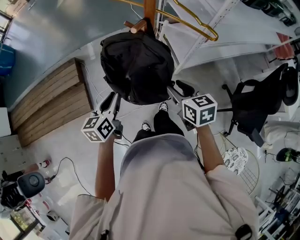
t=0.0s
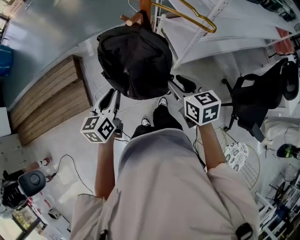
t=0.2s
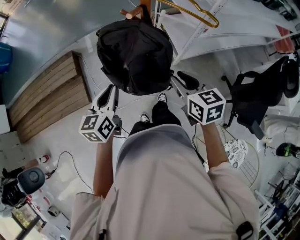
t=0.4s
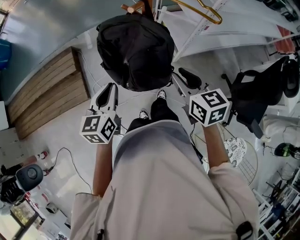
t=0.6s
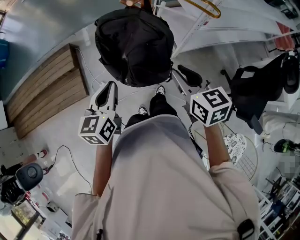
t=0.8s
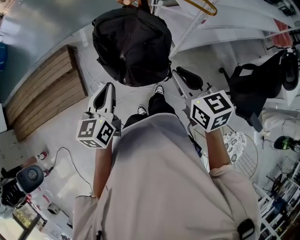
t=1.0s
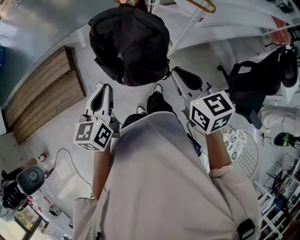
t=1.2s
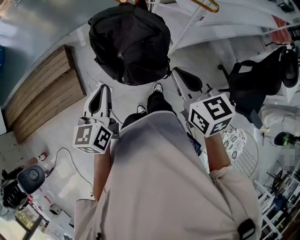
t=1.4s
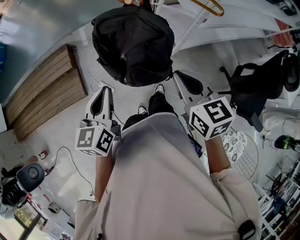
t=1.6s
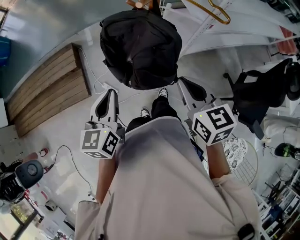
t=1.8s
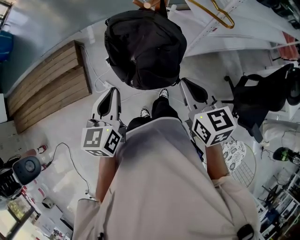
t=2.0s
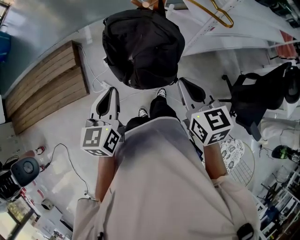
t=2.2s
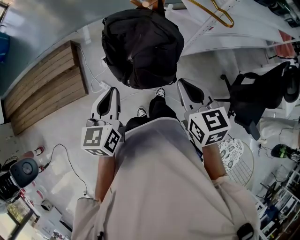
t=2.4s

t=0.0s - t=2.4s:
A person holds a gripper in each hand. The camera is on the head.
t=0.0s - t=1.2s: The two grippers go roughly 10 cm upward and backward. The right gripper closes up.
t=1.2s - t=2.4s: There are only small adjustments of the grippers.

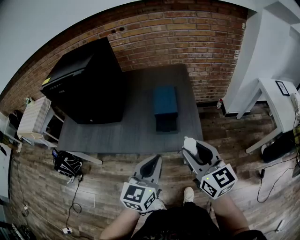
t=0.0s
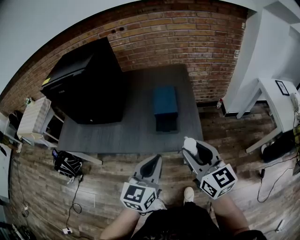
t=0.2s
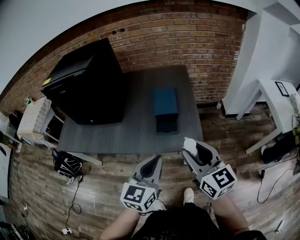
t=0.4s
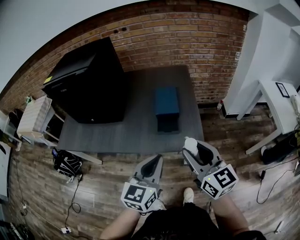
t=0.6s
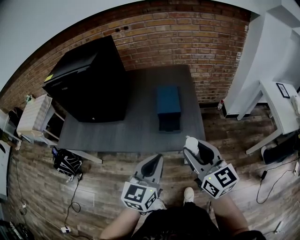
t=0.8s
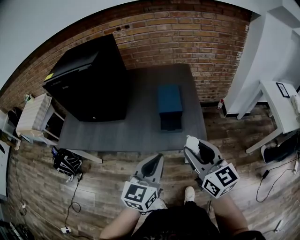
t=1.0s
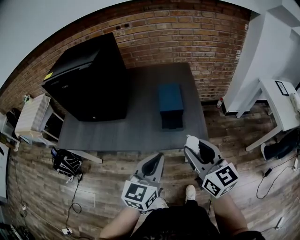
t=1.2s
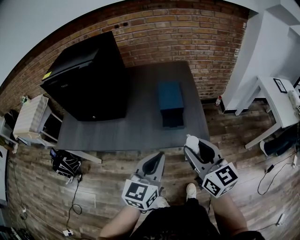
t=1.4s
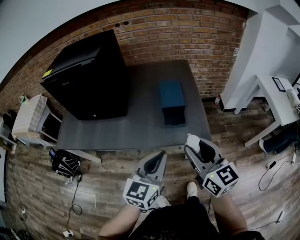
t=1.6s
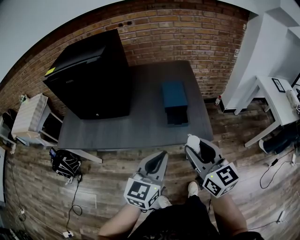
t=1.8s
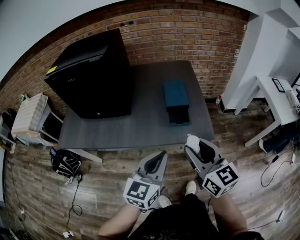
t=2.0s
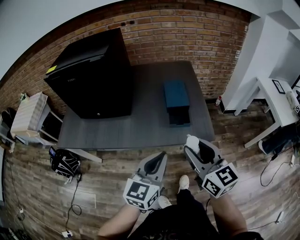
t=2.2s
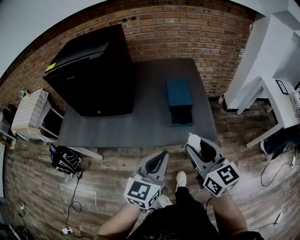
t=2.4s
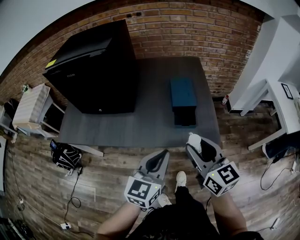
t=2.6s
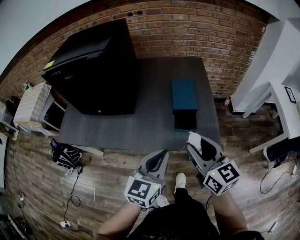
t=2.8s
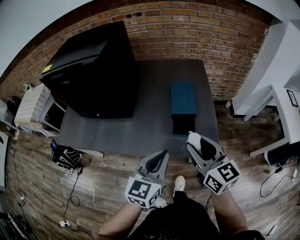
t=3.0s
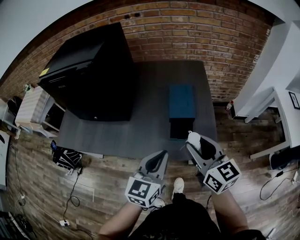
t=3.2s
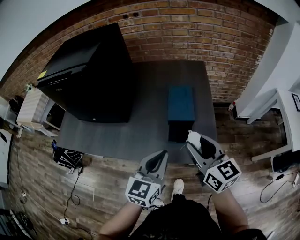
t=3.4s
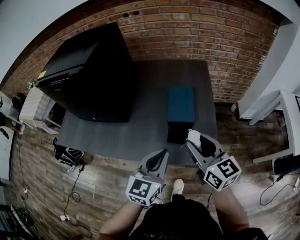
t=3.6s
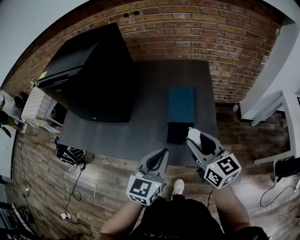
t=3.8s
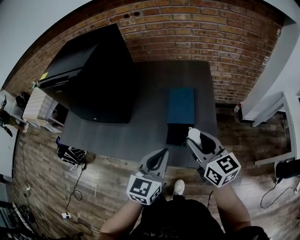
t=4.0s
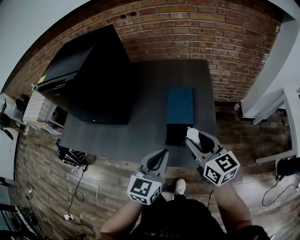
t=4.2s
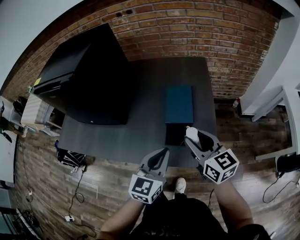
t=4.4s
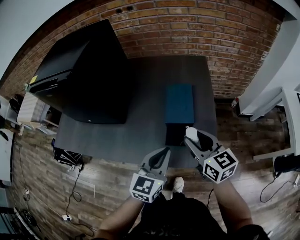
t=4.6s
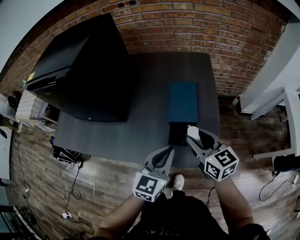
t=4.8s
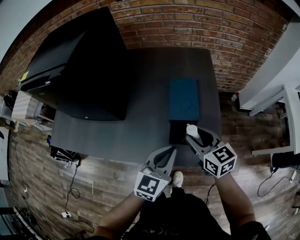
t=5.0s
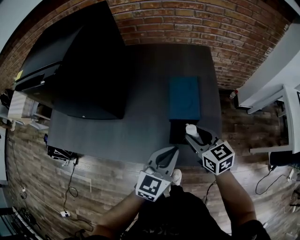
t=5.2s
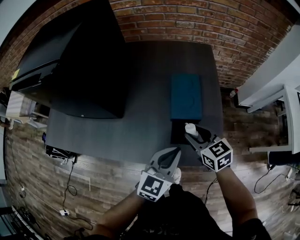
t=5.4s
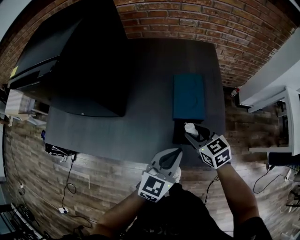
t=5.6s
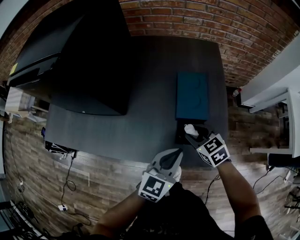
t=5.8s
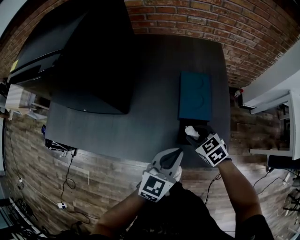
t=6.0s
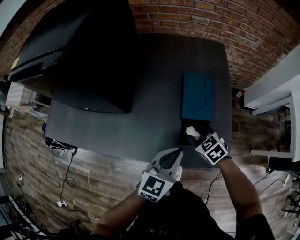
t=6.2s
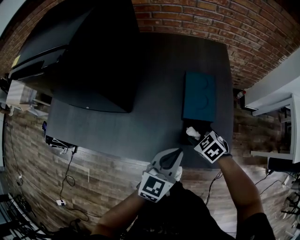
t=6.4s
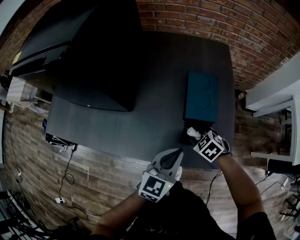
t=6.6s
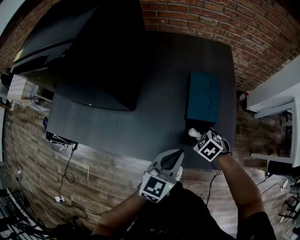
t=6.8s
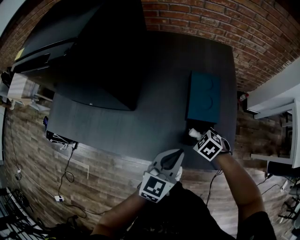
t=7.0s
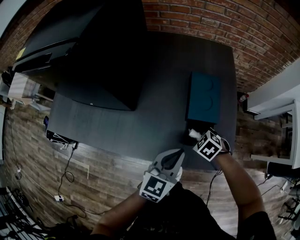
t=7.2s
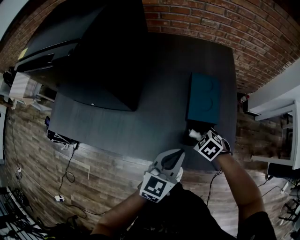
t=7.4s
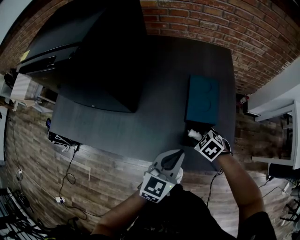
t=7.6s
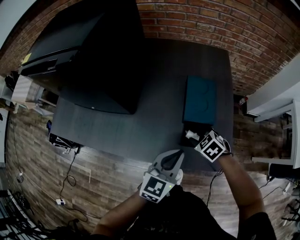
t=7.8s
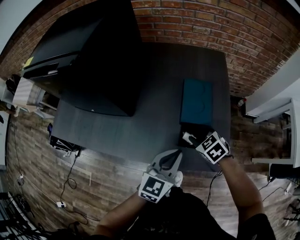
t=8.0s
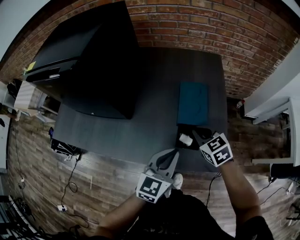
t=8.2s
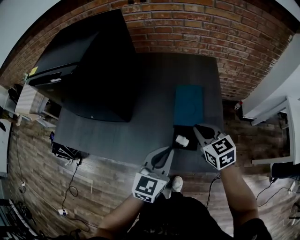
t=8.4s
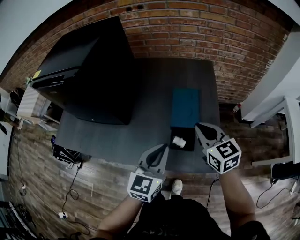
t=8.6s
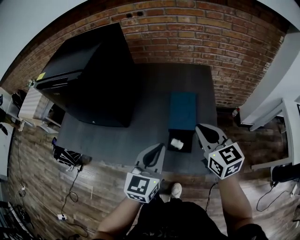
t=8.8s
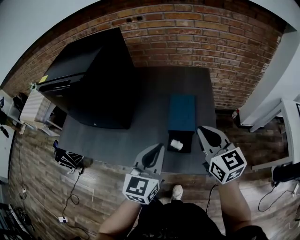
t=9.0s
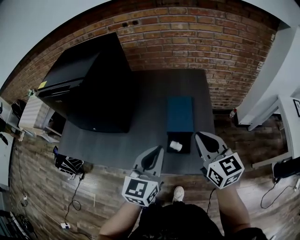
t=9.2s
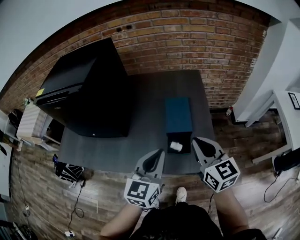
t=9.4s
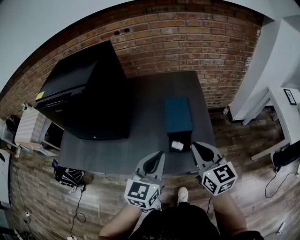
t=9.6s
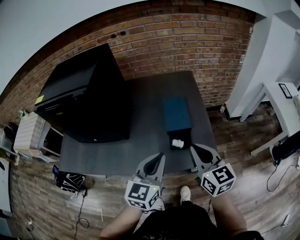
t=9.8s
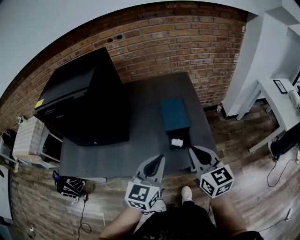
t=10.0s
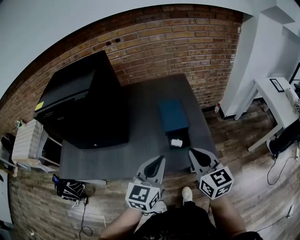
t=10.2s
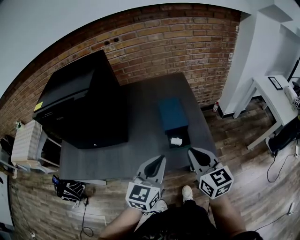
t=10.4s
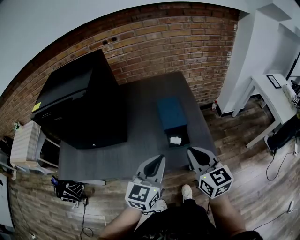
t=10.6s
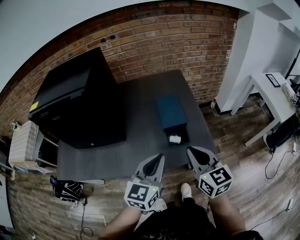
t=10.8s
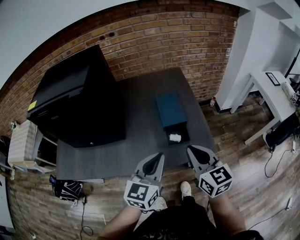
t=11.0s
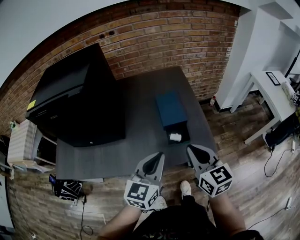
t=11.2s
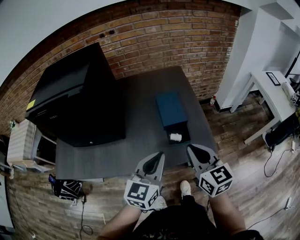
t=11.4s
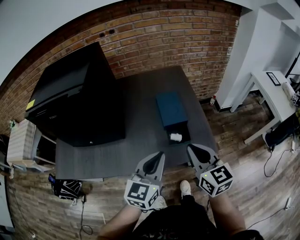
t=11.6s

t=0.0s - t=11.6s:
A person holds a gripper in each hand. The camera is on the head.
t=0.0s - t=1.4s: The right gripper goes roughly 5 cm to the left.
t=1.4s - t=2.8s: The right gripper heads forward and to the left, covering roughly 10 cm, while the left gripper goes about 5 cm forward.
t=2.8s - t=4.4s: Both grippers travel together forward and to the right, about 15 cm.
t=4.4s - t=5.8s: The right gripper shifts some 15 cm downward, and tips its fingers downward by approximately 30 degrees; the left gripper goes some 5 cm downward.
t=5.8s - t=7.2s: The right gripper heads downward, covering about 10 cm, and rotates some 30 degrees.
t=7.2s - t=8.8s: The left gripper heads upward, covering roughly 10 cm. Meanwhile the right gripper moves upward, approximately 30 cm, angles its fingers upward, by about 50 degrees, and closes its fingers.
t=8.8s - t=10.2s: The left gripper moves backward, about 10 cm. Meanwhile the right gripper moves backward, some 15 cm.
t=10.2s - t=11.6s: The grippers move only a little.

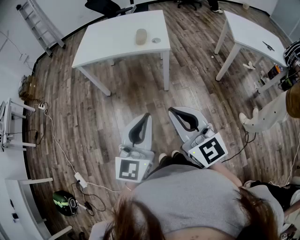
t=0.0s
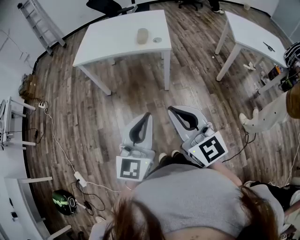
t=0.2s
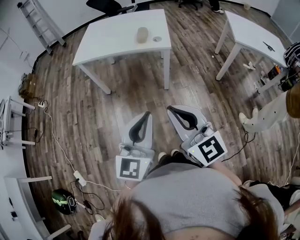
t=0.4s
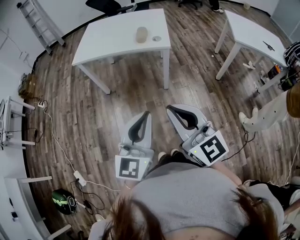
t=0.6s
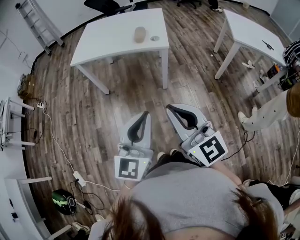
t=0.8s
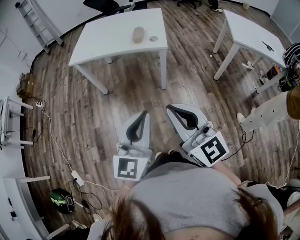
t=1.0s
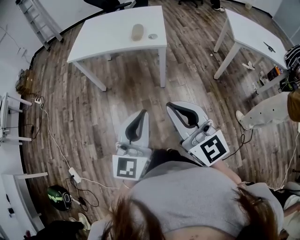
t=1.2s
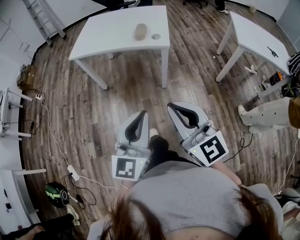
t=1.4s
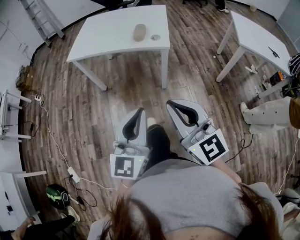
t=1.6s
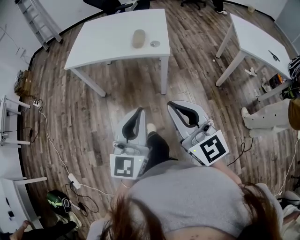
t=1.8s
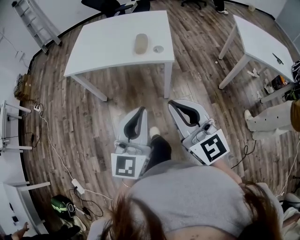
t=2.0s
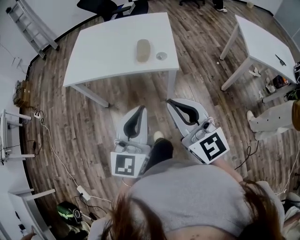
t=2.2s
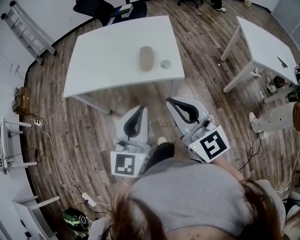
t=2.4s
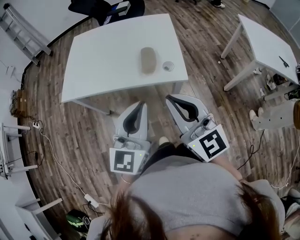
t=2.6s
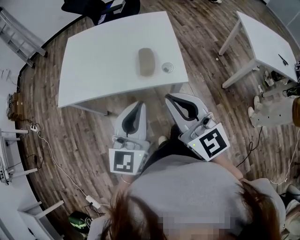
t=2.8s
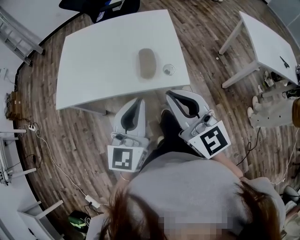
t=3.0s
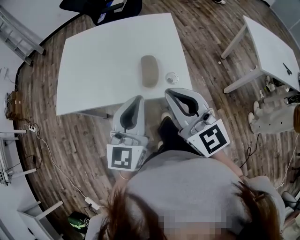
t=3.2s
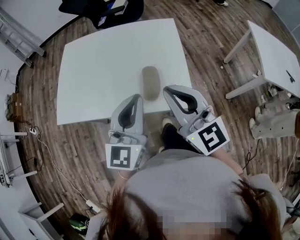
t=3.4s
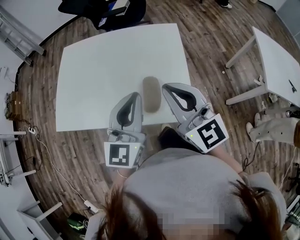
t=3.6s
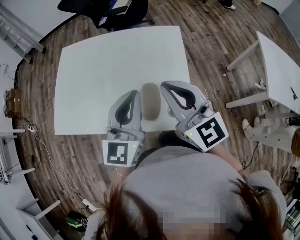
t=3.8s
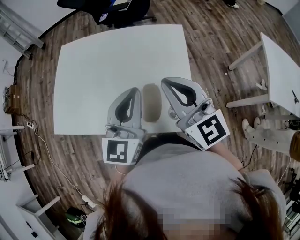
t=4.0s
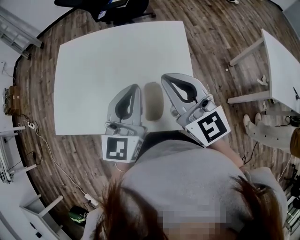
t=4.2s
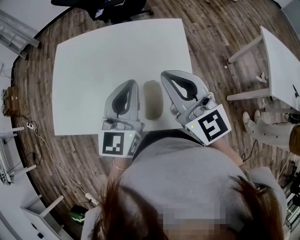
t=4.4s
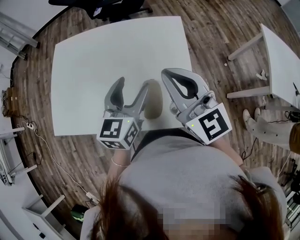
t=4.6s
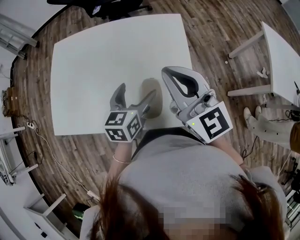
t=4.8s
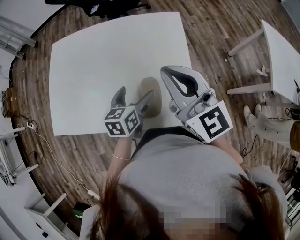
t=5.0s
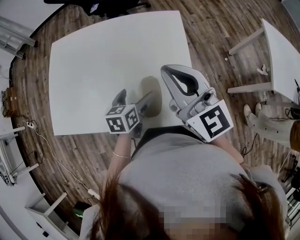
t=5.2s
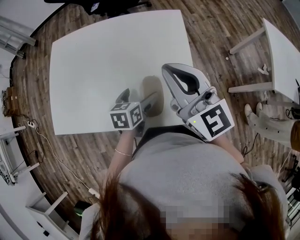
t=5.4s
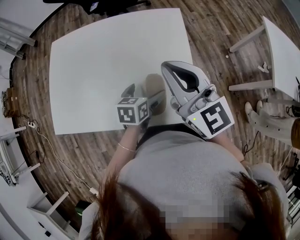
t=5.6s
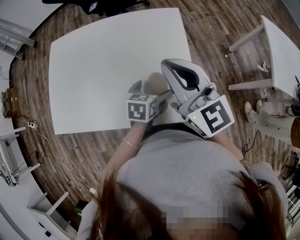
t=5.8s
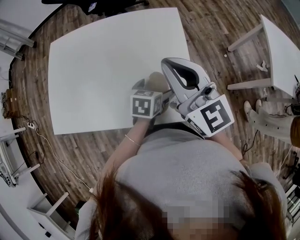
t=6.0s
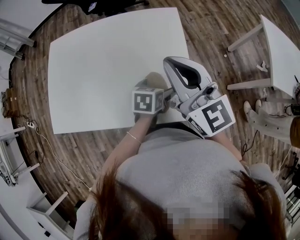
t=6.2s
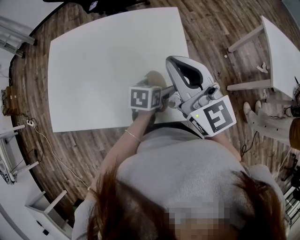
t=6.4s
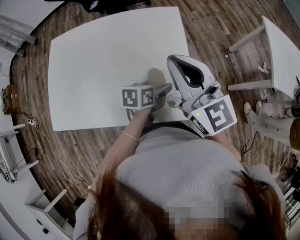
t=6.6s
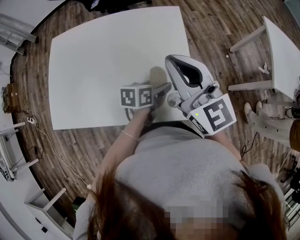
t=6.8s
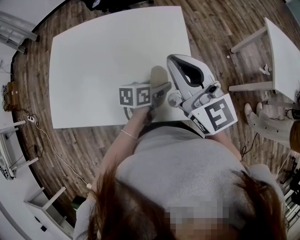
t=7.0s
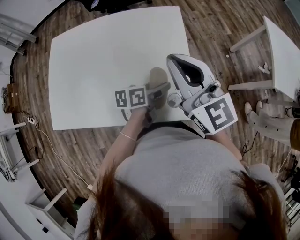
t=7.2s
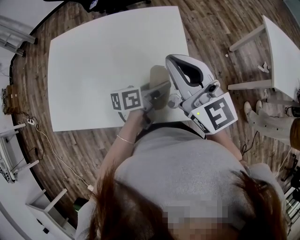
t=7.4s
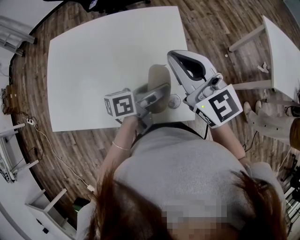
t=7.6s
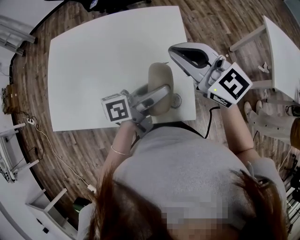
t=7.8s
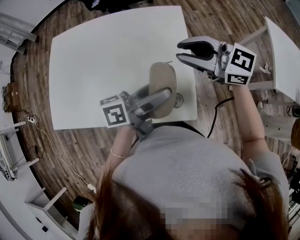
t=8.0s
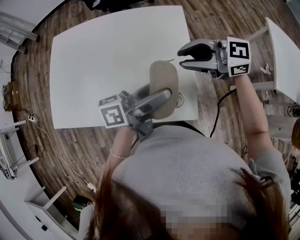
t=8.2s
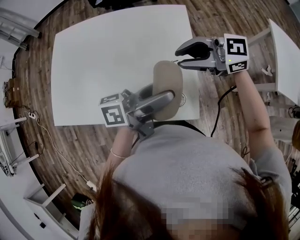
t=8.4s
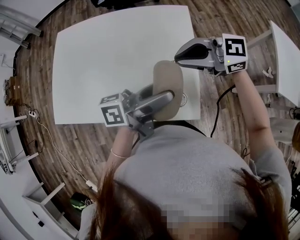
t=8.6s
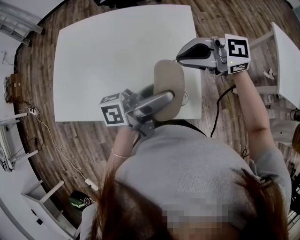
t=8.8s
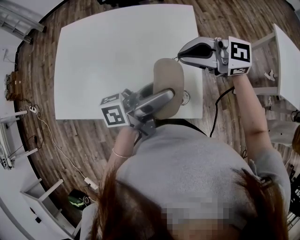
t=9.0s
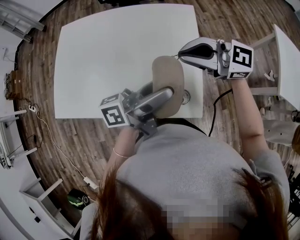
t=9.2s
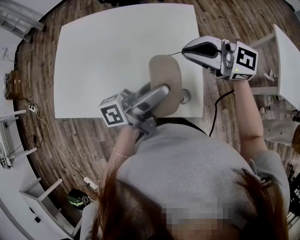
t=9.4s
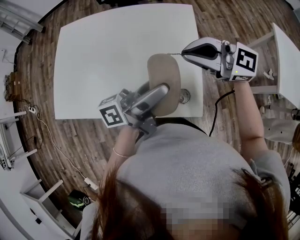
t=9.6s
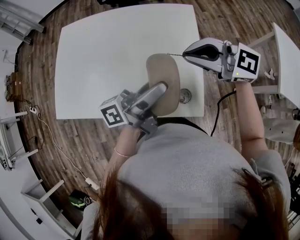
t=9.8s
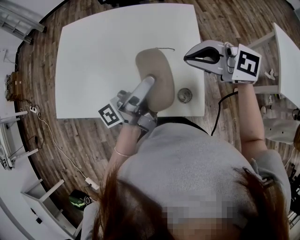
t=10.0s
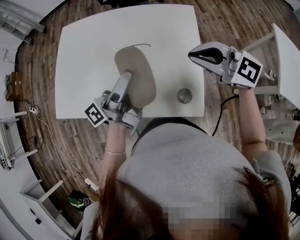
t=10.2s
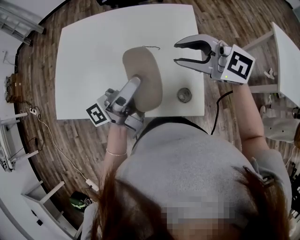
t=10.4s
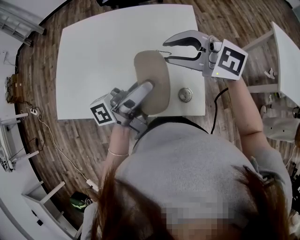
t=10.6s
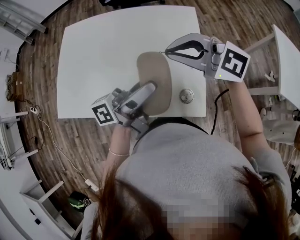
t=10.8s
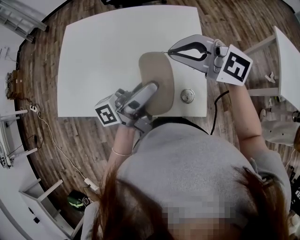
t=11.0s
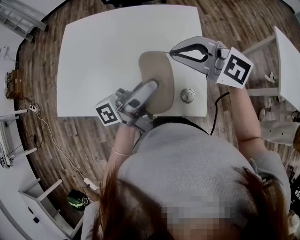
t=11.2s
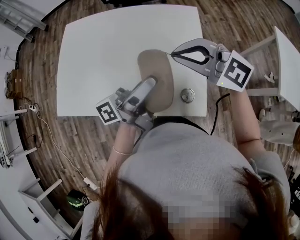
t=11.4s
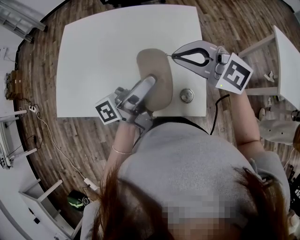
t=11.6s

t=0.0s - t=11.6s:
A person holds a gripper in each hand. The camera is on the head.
t=0.0s - t=1.4s: The grippers stay close to where they were, moving slightly.
t=1.4s - t=2.8s: The grippers both shift forward by roughly 35 cm.
t=2.8s - t=4.4s: The grippers both shift forward by approximately 30 cm.
t=4.4s - t=5.8s: The left gripper shifts about 20 cm downward, tips its fingers downward by about 40 degrees, and opens its fingers.
t=5.8s - t=7.2s: The left gripper turns by some 30 degrees, and closes.
t=7.2s - t=8.8s: The right gripper travels downward by approximately 5 cm, and swivels roughly 60 degrees. Meanwhile the left gripper travels upward by some 20 cm, and angles its fingers upward, by some 40 degrees.
t=8.8s - t=10.2s: The right gripper swivels roughly 20 degrees, while the left gripper changes place by about 10 cm, and changes its angle by roughly 30 degrees.
t=10.2s - t=11.6s: The right gripper changes place by some 5 cm, and opens, then closes once more.
